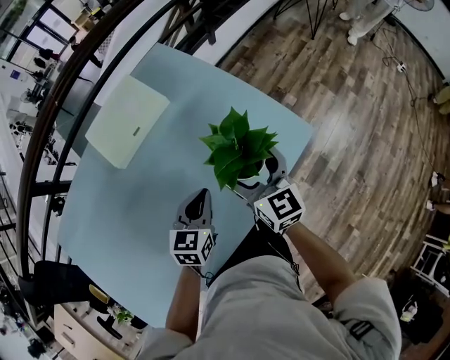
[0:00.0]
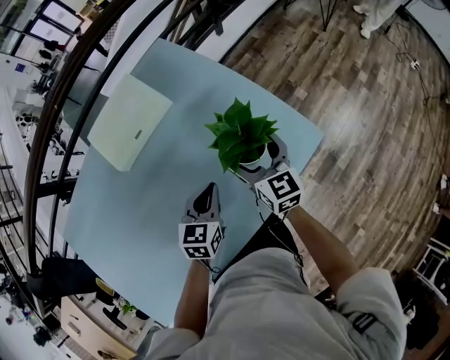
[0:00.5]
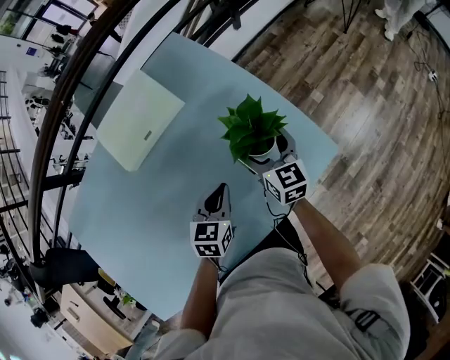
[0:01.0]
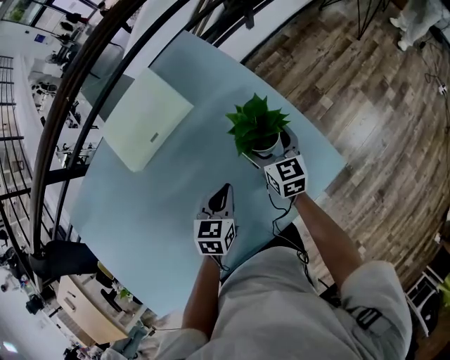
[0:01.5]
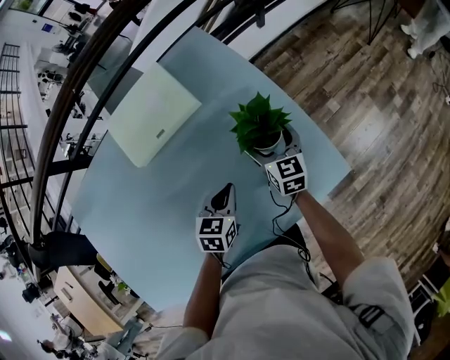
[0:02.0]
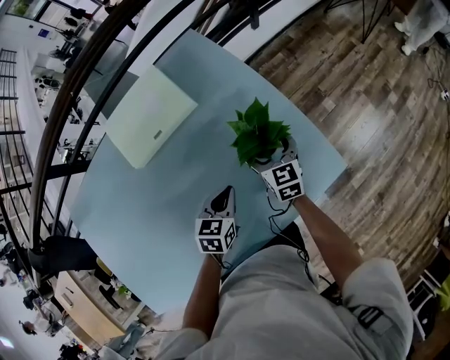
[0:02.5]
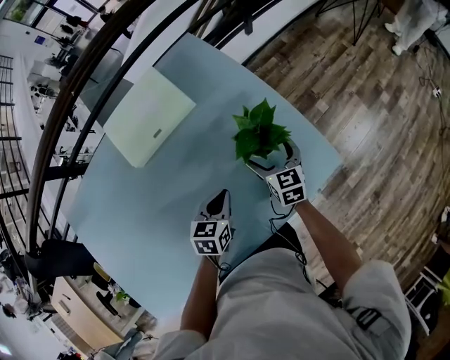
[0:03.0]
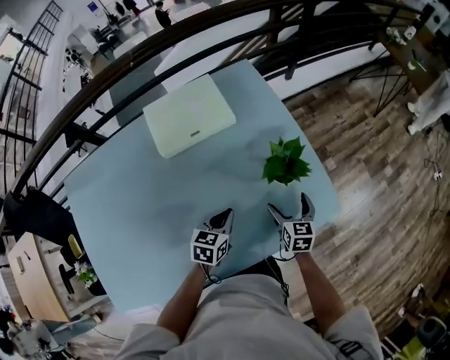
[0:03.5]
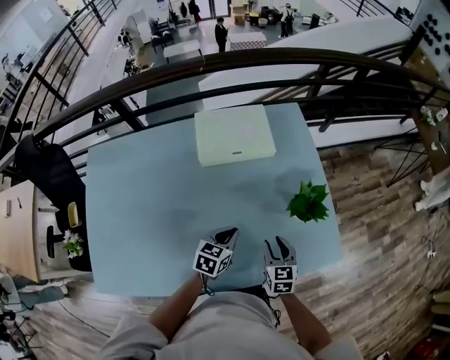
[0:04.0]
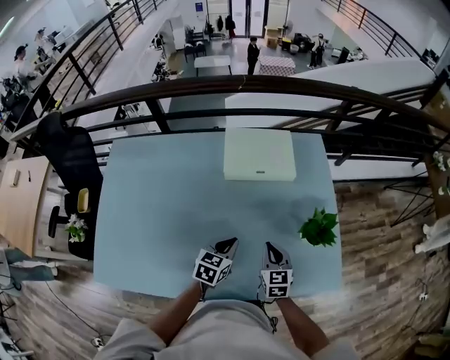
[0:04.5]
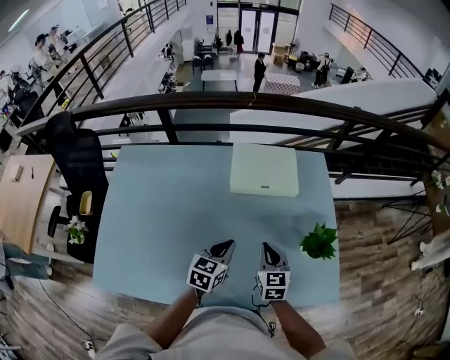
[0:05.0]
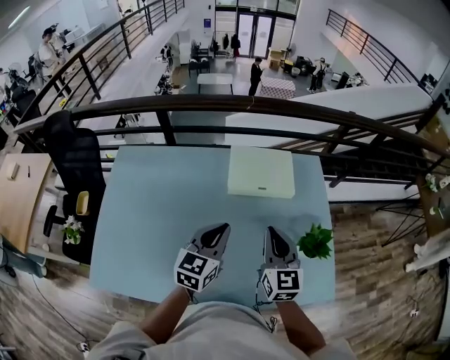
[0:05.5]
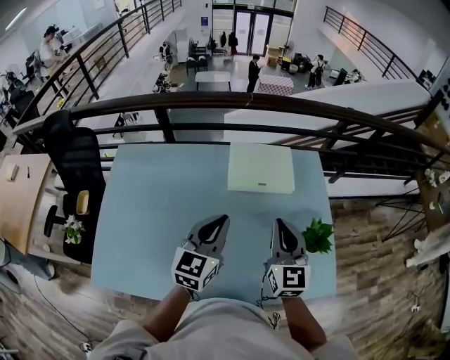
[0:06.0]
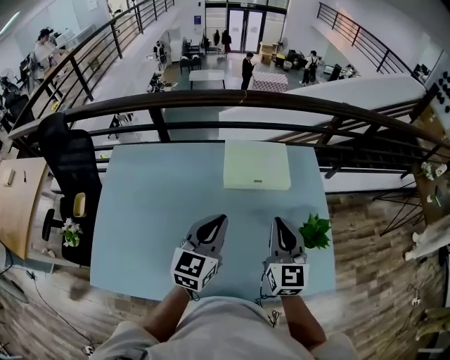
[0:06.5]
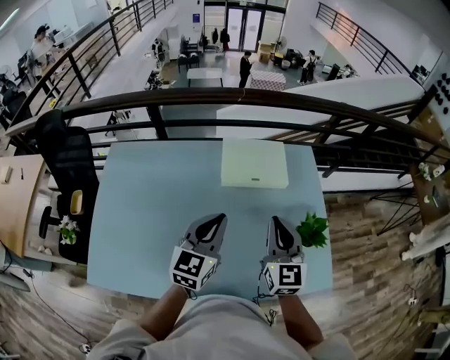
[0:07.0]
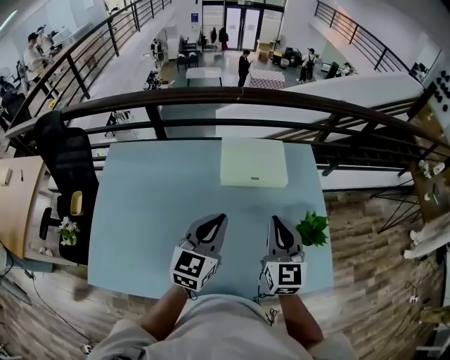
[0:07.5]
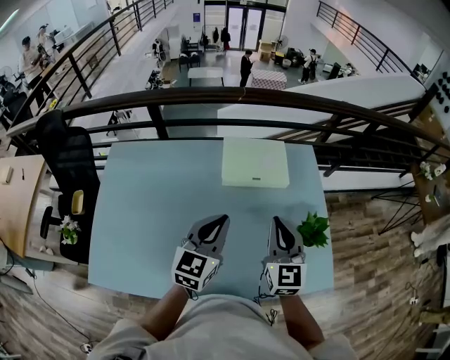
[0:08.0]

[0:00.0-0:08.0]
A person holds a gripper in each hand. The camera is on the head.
0:00.0 to 0:02.0: The left gripper goes about 10 cm downward and forward. Meanwhile the right gripper travels forward and downward by roughly 25 cm.
0:02.0 to 0:04.0: The right gripper heads backward, covering approximately 20 cm, and closes. The left gripper moves to the left and backward, roughly 10 cm.
0:04.0 to 0:06.0: The left gripper travels upward and to the left by about 25 cm, and turns by some 40 degrees. The right gripper heads upward, covering some 30 cm, and tips its fingers upward by approximately 30 degrees.
0:06.0 to 0:08.0: The grippers make only small movements.

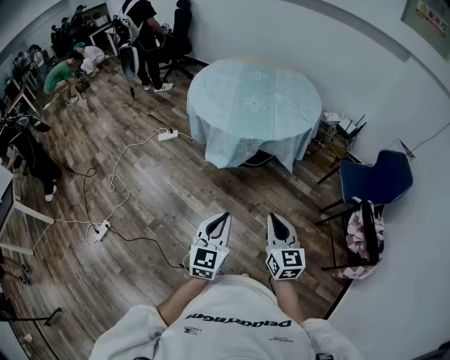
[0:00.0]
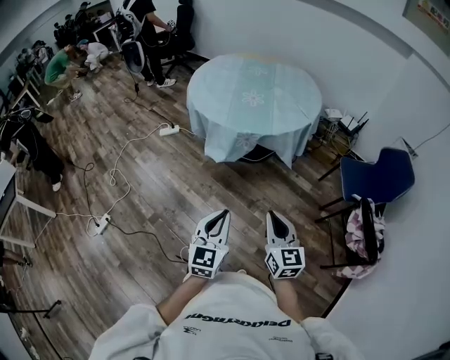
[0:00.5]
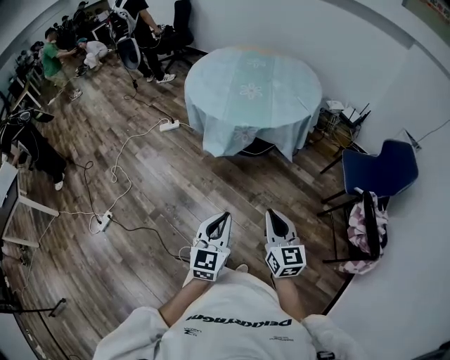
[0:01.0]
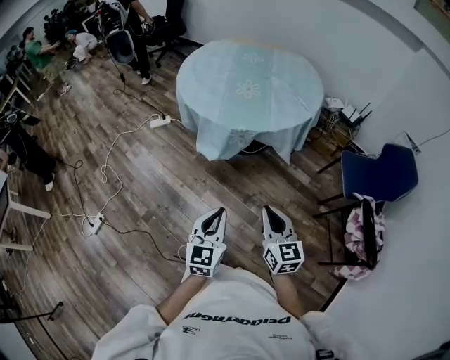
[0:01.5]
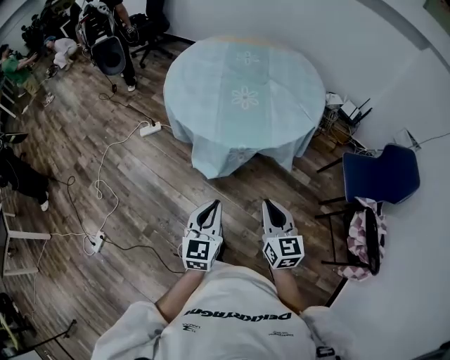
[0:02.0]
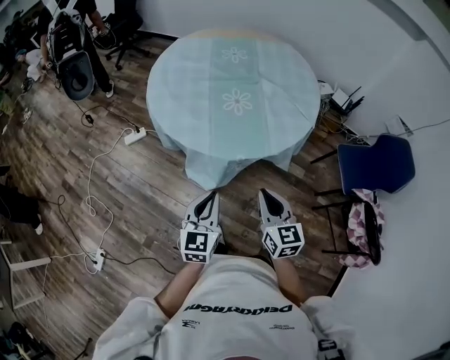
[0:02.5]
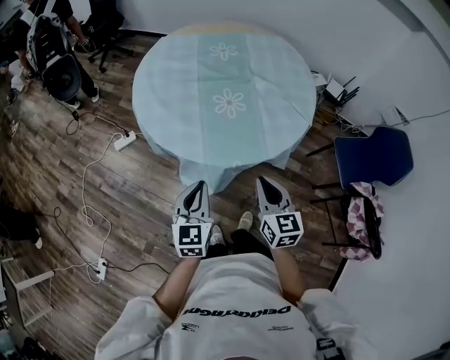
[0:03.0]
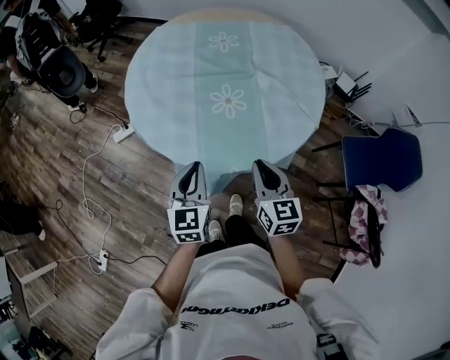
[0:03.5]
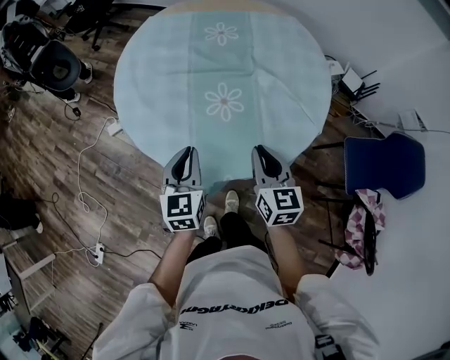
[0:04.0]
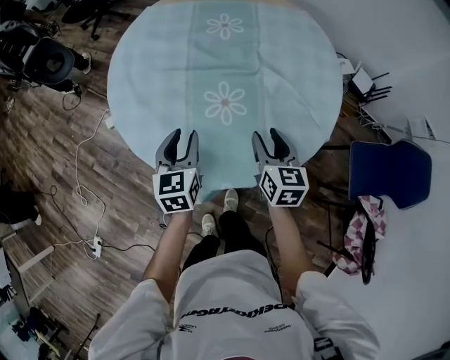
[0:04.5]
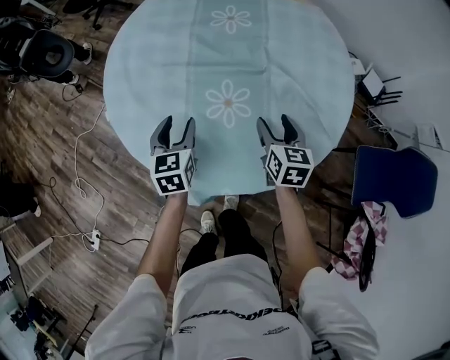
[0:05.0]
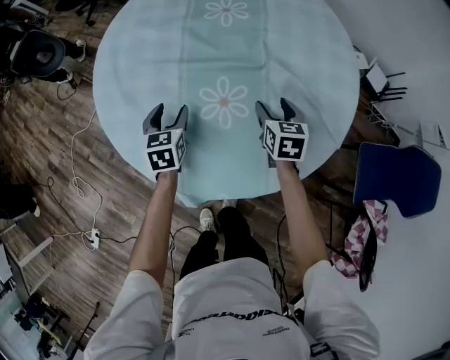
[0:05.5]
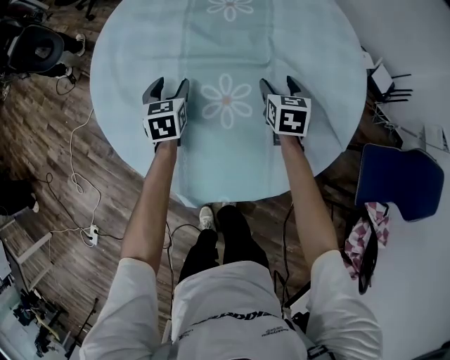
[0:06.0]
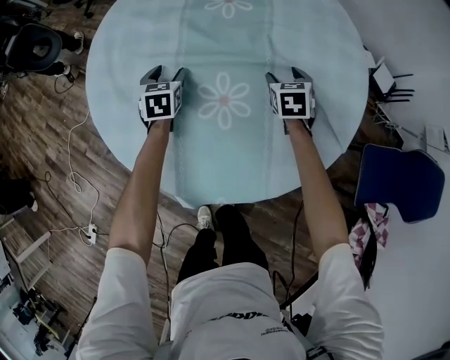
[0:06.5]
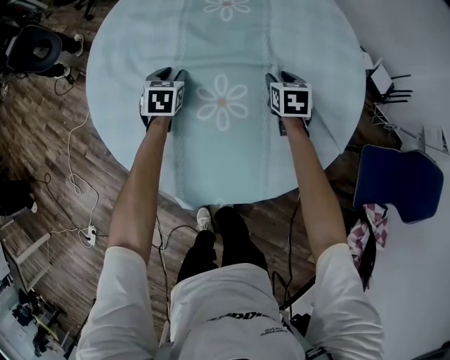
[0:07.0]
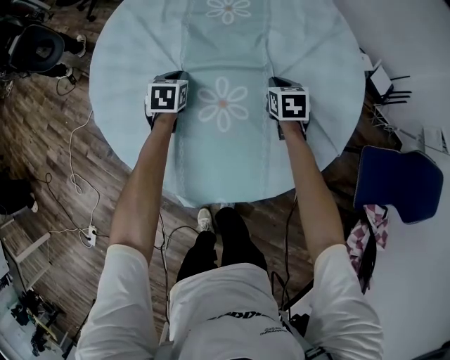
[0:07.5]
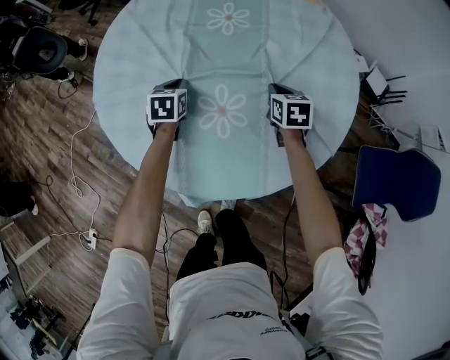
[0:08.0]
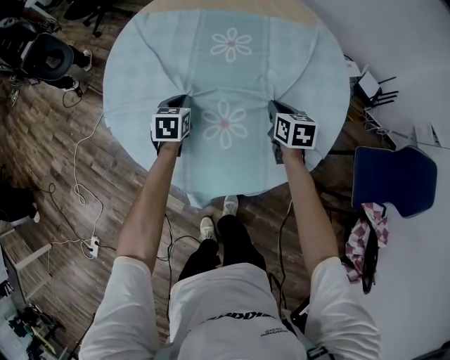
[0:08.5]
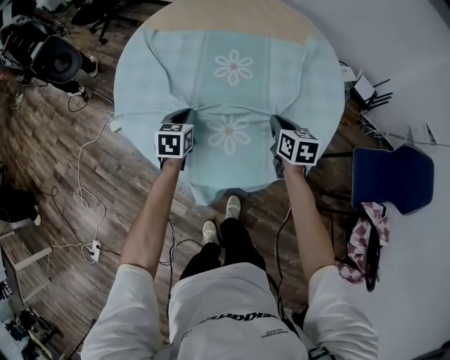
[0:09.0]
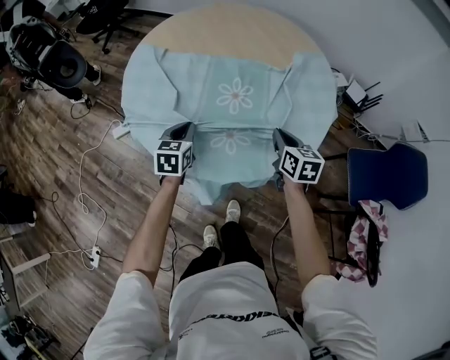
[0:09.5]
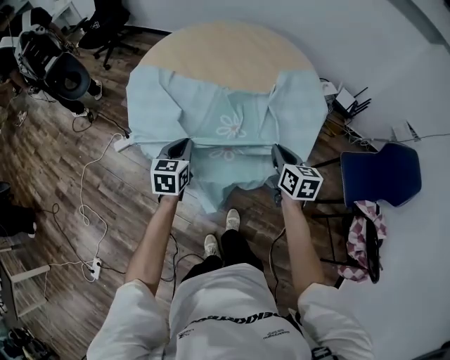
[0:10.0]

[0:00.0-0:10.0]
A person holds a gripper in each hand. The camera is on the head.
0:00.0 to 0:02.0: Both grippers travel together forward, approximately 25 cm.
0:02.0 to 0:04.0: Both grippers travel together forward, about 40 cm.
0:04.0 to 0:06.0: The grippers both shift forward and downward by roughly 35 cm. The right gripper rotates approximately 20 degrees, and opens its fingers, while the left gripper opens up.
0:06.0 to 0:08.0: The left gripper closes, while the right gripper closes.
0:08.0 to 0:10.0: Both grippers travel together backward and upward, roughly 30 cm. The right gripper swivels about 20 degrees.

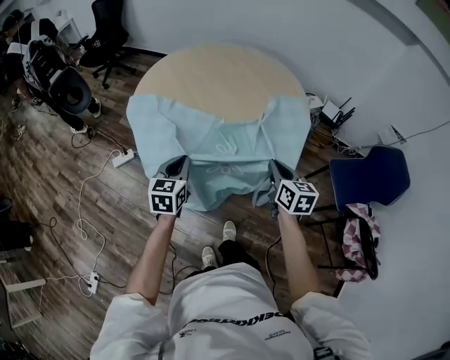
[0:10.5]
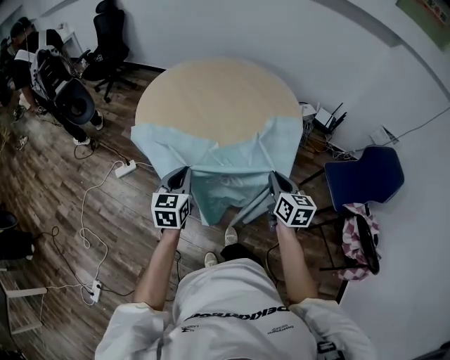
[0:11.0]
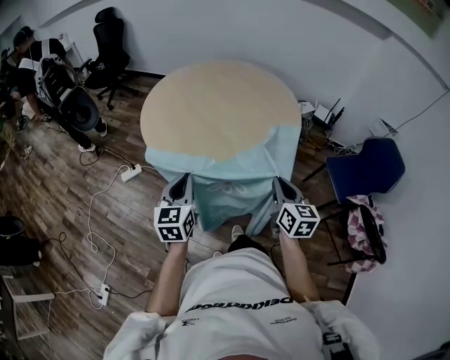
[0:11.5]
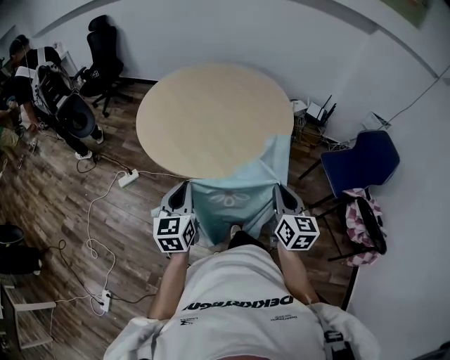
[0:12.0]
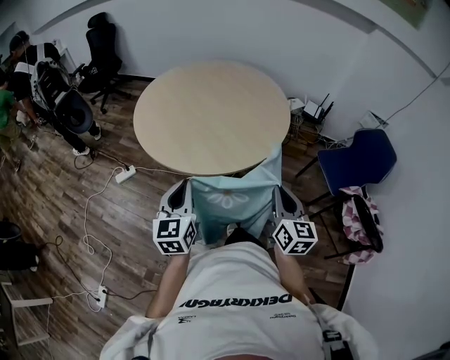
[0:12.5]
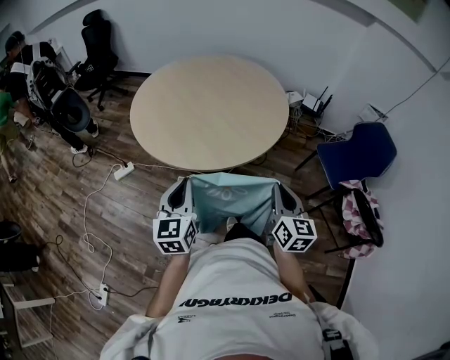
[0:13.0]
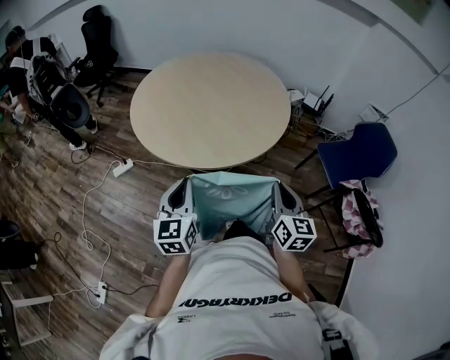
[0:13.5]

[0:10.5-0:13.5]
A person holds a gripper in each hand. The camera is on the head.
0:10.5 to 0:12.0: The right gripper is displaced backward by about 20 cm; the left gripper goes approximately 20 cm backward and upward.
0:12.0 to 0:13.5: There are only small adjustments of the grippers.

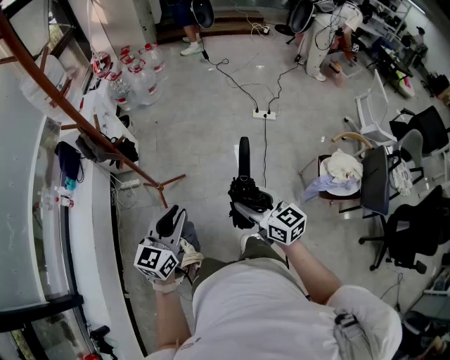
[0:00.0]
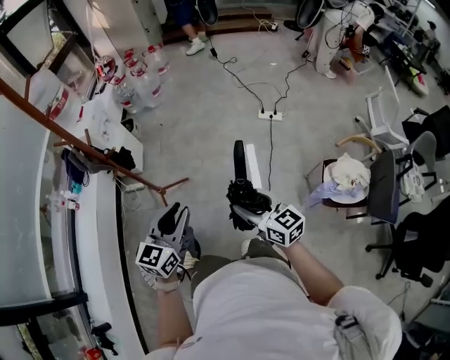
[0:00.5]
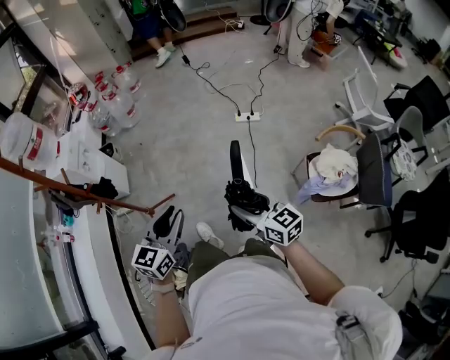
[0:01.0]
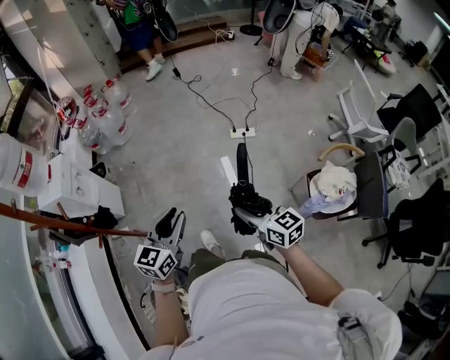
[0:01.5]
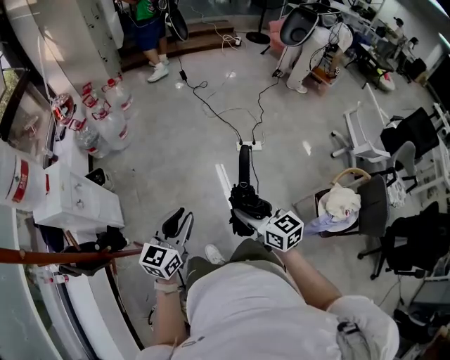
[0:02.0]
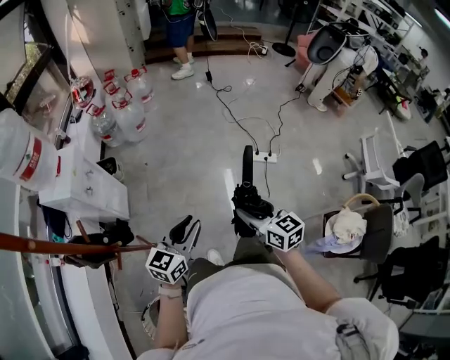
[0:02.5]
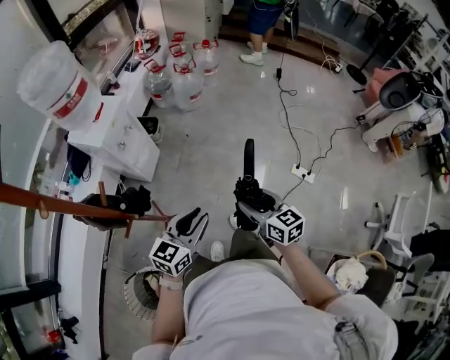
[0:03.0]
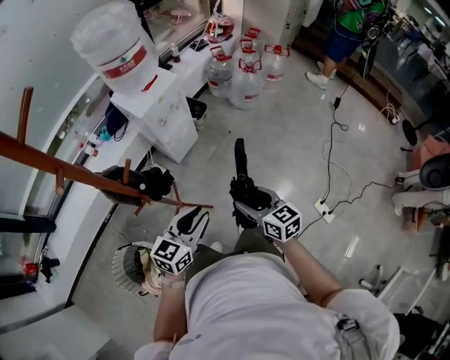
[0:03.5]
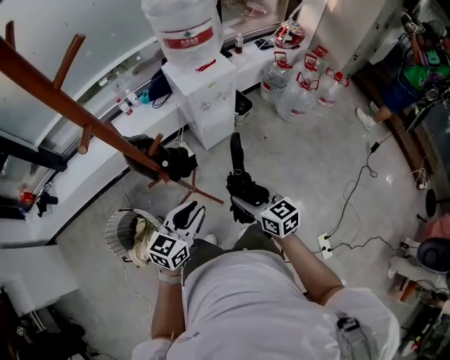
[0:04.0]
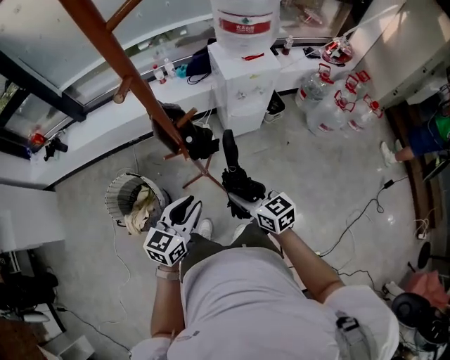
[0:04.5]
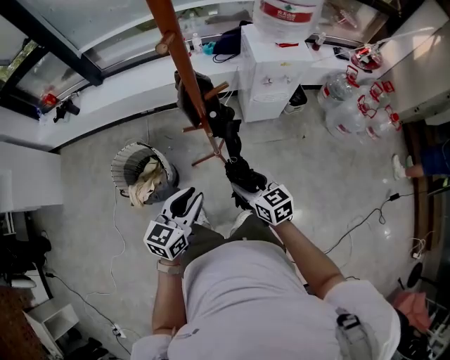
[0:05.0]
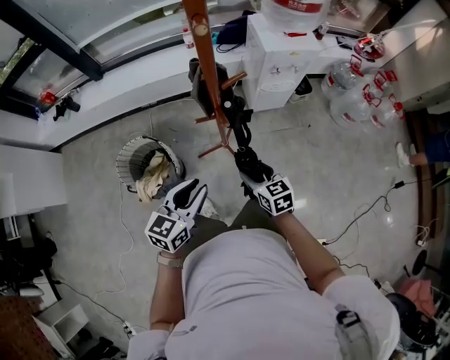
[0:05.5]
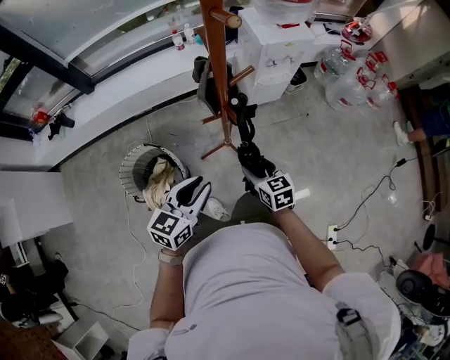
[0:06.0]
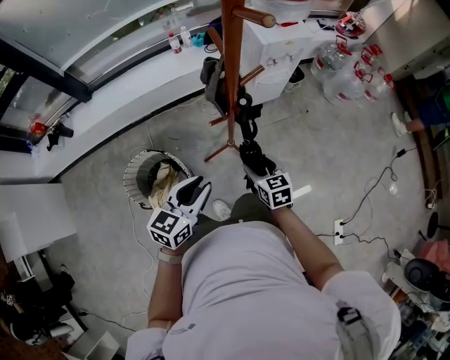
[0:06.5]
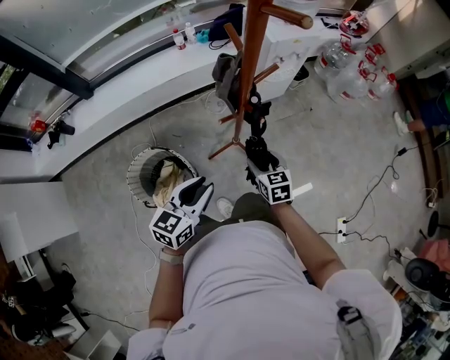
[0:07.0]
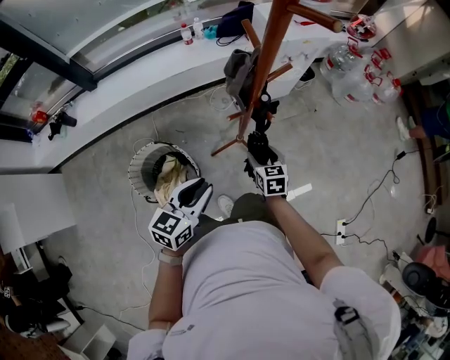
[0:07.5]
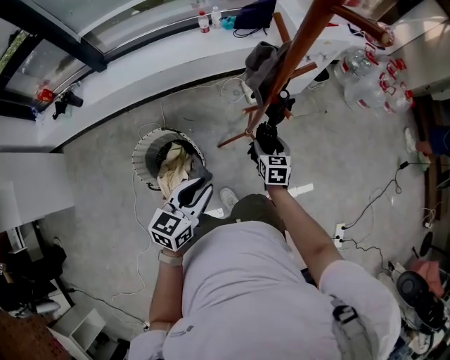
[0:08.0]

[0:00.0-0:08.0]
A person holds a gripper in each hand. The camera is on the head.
0:00.0 to 0:02.0: The two grippers go roughly 35 cm forward.
0:02.0 to 0:04.0: The left gripper ends up roughly 20 cm from where it was, and turns by some 70 degrees; the right gripper ends up about 35 cm from where it was, and rotates some 80 degrees.
0:04.0 to 0:06.0: The right gripper travels to the left and downward by some 20 cm. Meanwhile the left gripper travels to the left by approximately 20 cm.
0:06.0 to 0:08.0: The left gripper goes approximately 10 cm to the left, while the right gripper shifts some 15 cm downward, to the left and forward.
